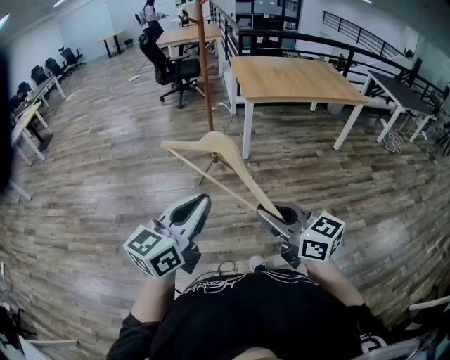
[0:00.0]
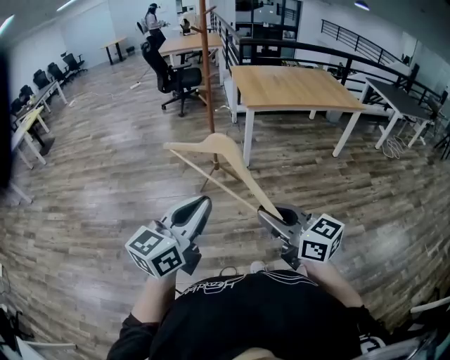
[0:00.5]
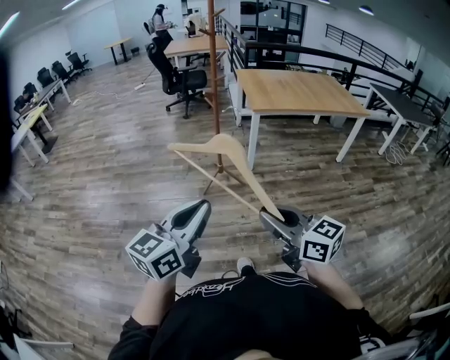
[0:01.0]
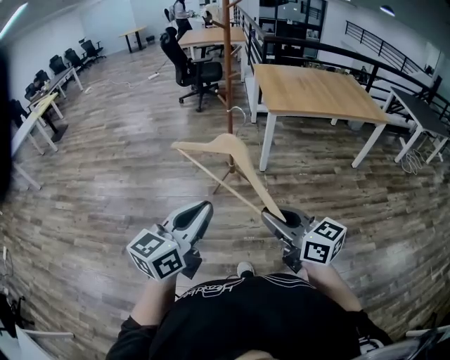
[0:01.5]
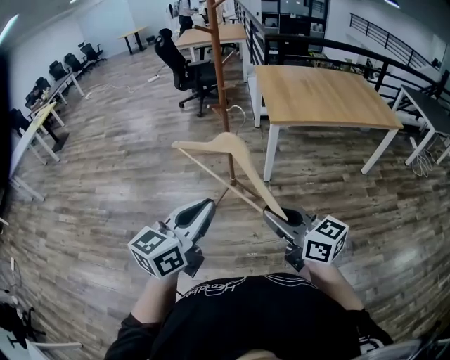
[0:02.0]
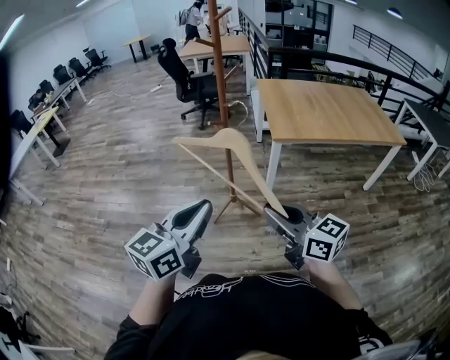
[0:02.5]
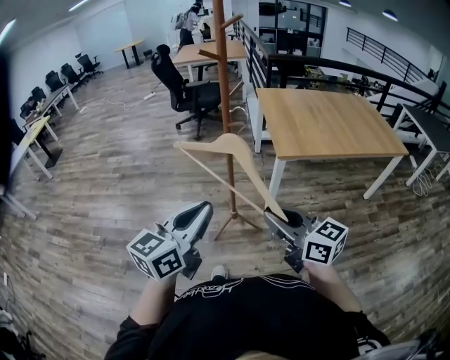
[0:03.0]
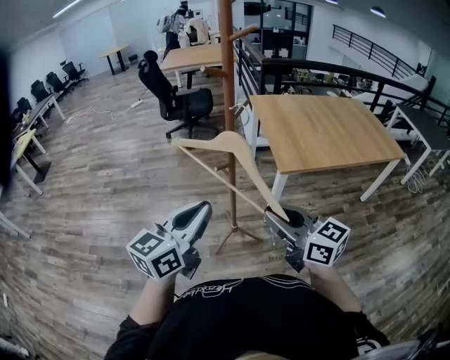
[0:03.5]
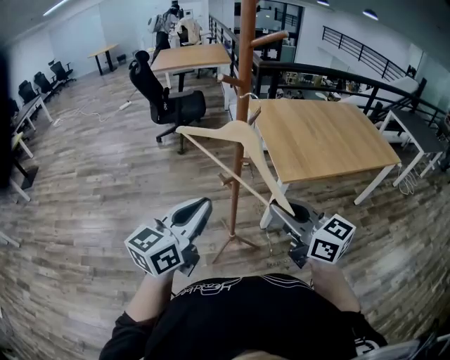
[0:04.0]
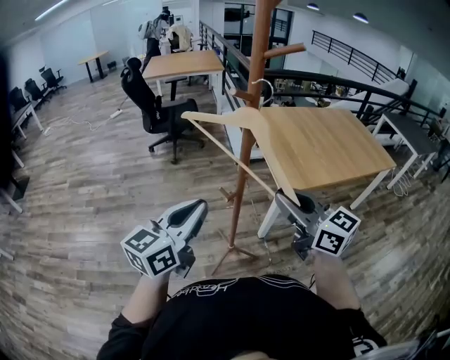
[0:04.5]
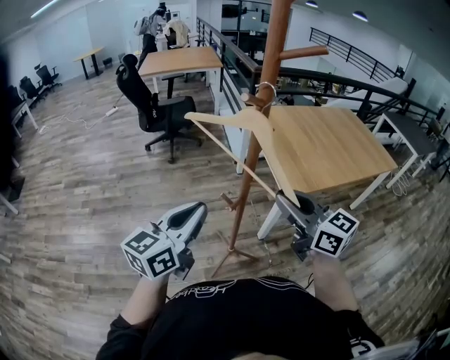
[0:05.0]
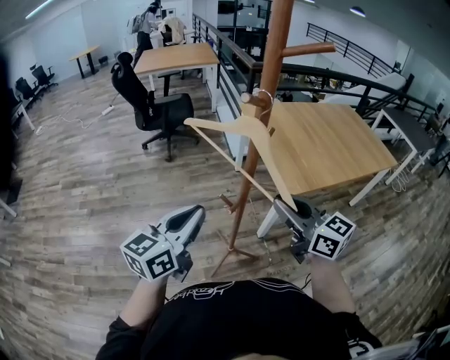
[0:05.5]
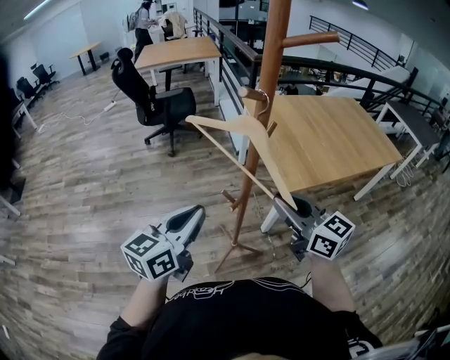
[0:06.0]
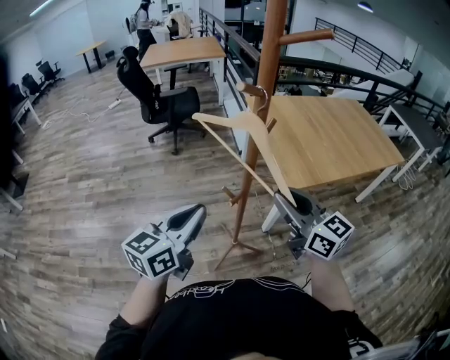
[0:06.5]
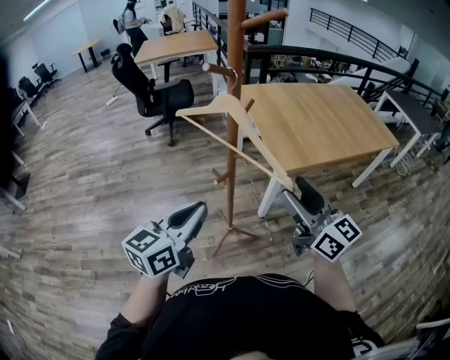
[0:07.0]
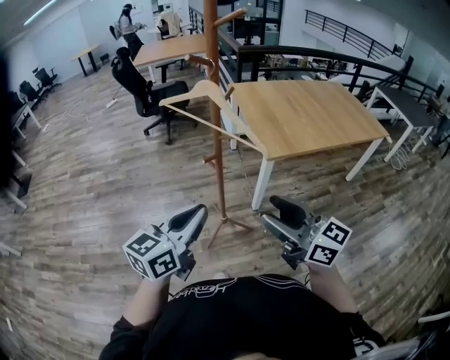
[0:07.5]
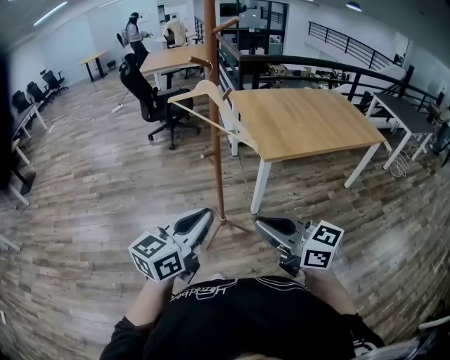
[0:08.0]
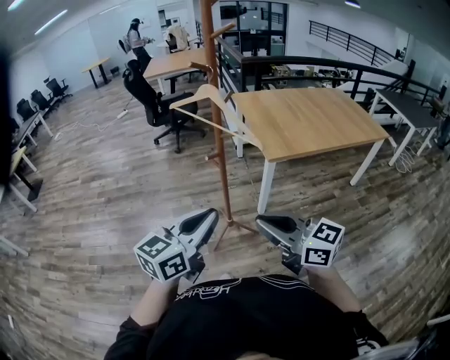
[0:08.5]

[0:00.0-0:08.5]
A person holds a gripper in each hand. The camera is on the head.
0:00.0 to 0:02.0: The grippers both shift forward by approximately 25 cm.
0:02.0 to 0:04.0: The grippers both shift forward by approximately 35 cm.
0:04.0 to 0:06.5: The right gripper travels forward by roughly 10 cm; the left gripper heads forward and downward, covering some 10 cm.
0:06.5 to 0:08.5: The right gripper shifts some 30 cm backward, and opens, then closes again; the left gripper heads backward and to the right, covering roughly 25 cm.

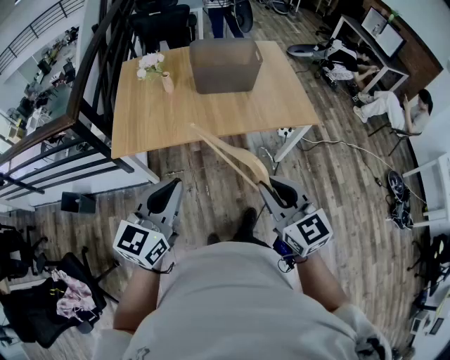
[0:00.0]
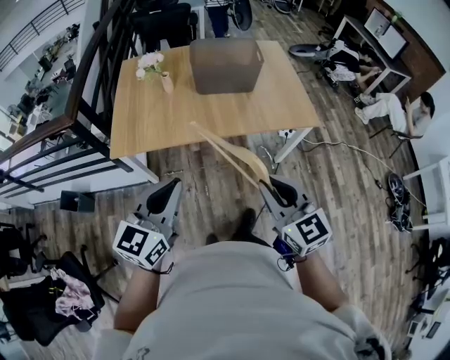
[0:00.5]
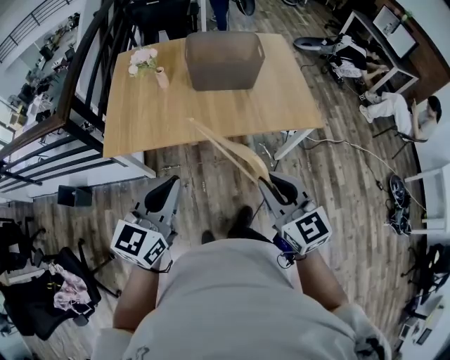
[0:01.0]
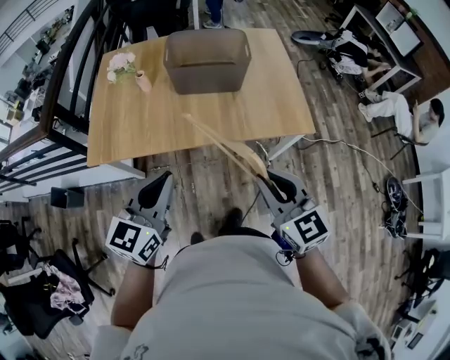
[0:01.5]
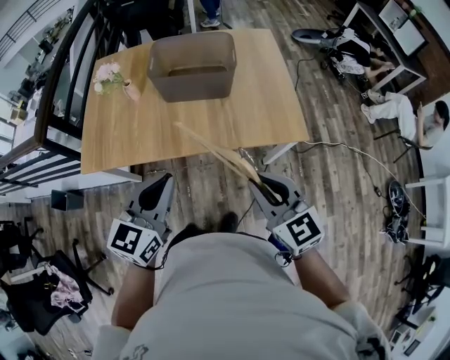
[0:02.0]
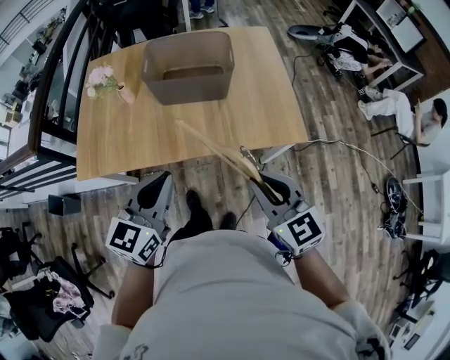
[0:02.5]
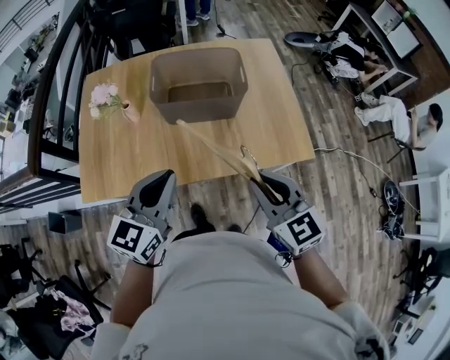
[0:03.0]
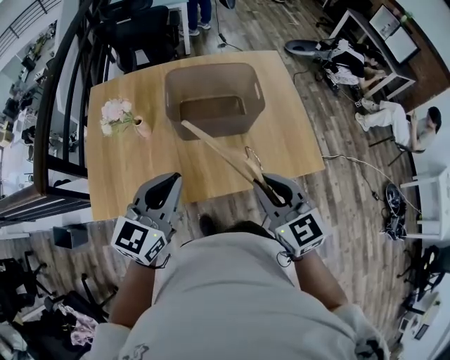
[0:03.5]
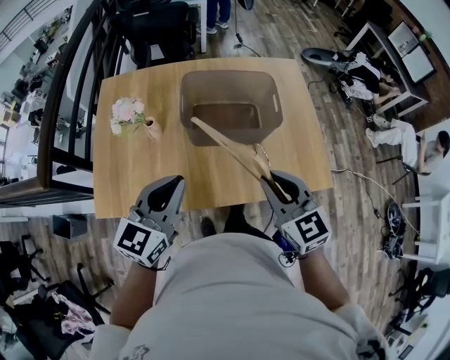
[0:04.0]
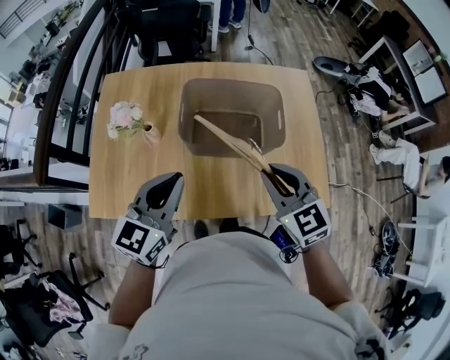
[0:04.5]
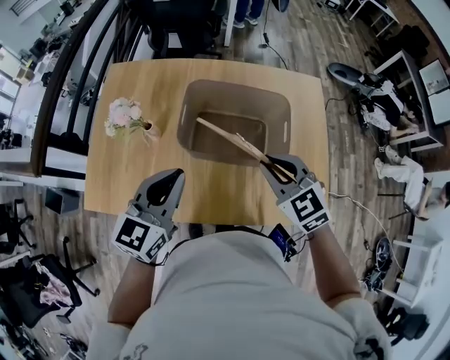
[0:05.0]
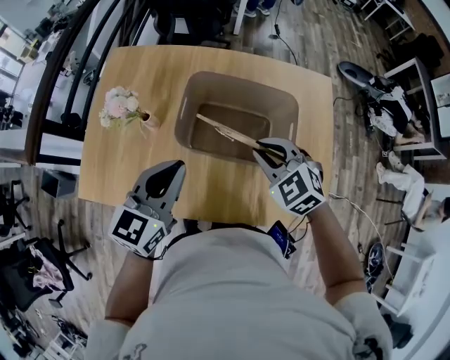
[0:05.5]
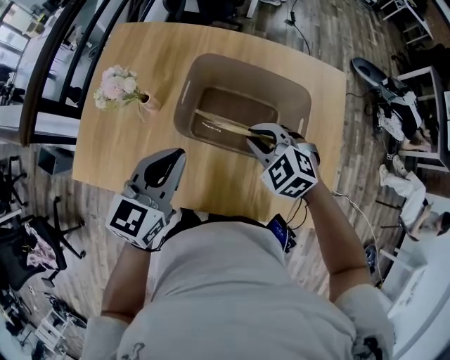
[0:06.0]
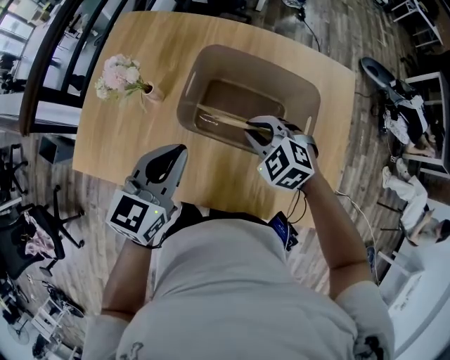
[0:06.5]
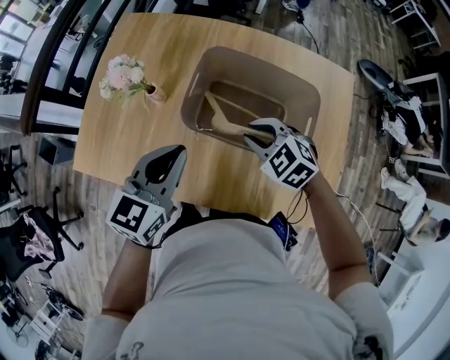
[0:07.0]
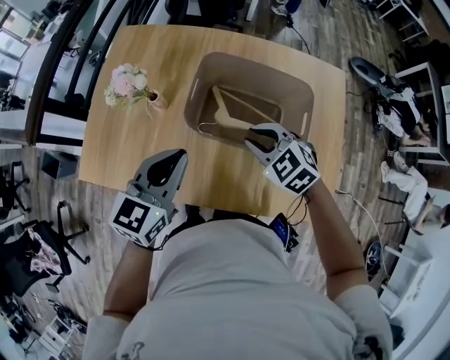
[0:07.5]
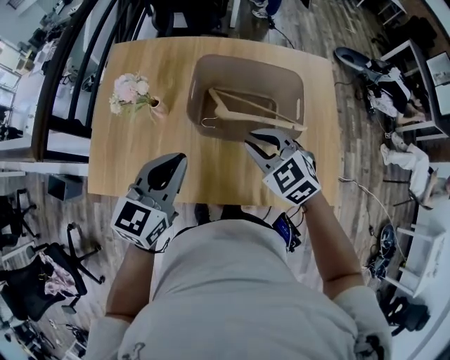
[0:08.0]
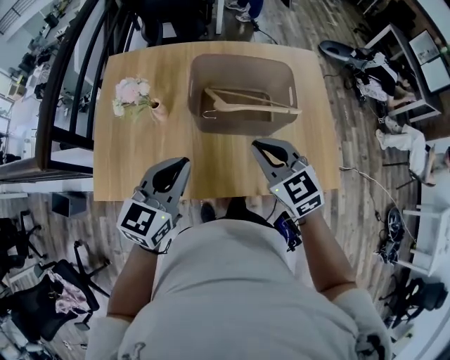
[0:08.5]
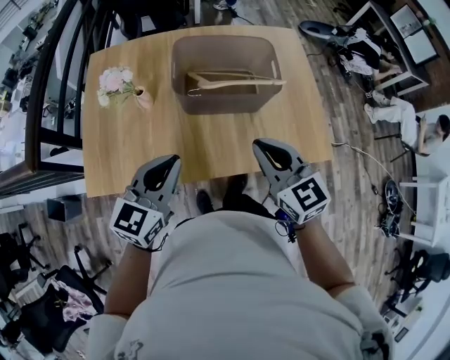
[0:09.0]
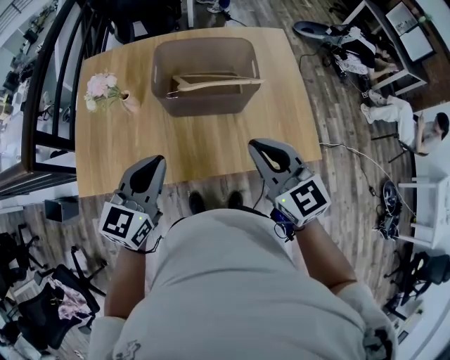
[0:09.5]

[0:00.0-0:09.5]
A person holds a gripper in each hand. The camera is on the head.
0:00.0 to 0:02.0: Both grippers move forward and to the right, roughly 25 cm.
0:02.0 to 0:04.0: The two grippers go approximately 25 cm forward and to the left.
0:04.0 to 0:05.5: The right gripper shifts approximately 20 cm forward, and changes its angle by some 40 degrees; the left gripper moves forward, some 15 cm.
0:05.5 to 0:07.5: The right gripper travels downward by about 5 cm.
0:07.5 to 0:09.5: The left gripper shifts some 15 cm backward. Meanwhile the right gripper shifts some 25 cm backward and upward, and points its fingers approximately 30 degrees further upward.

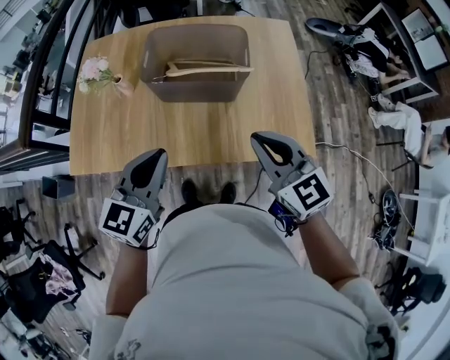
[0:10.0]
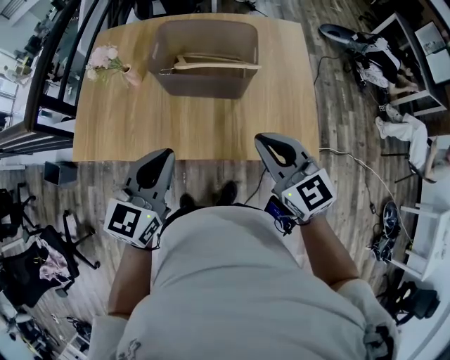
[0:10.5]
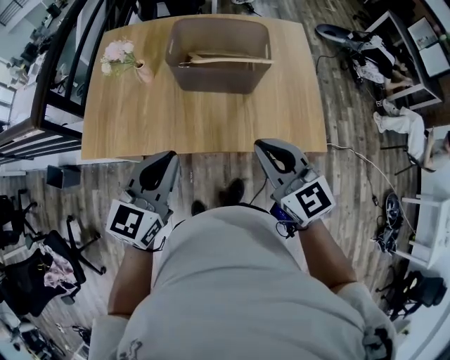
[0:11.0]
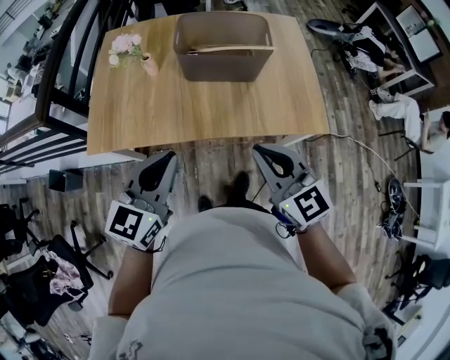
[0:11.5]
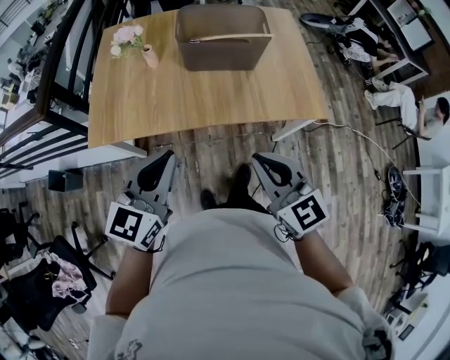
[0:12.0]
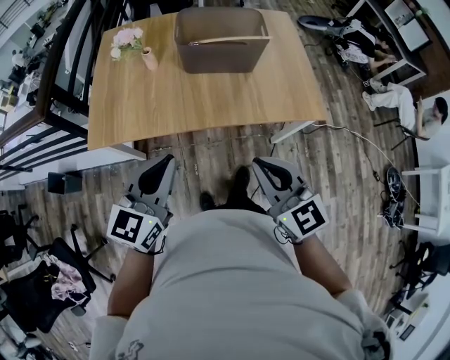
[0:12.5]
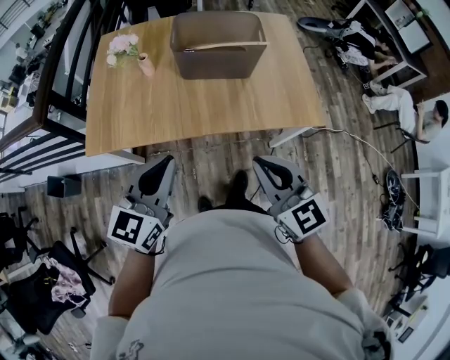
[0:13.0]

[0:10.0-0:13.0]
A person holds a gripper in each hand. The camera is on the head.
0:10.0 to 0:11.5: Both grippers travel together backward and to the left, roughly 15 cm.
0:11.5 to 0:13.0: The right gripper moves backward, approximately 5 cm.

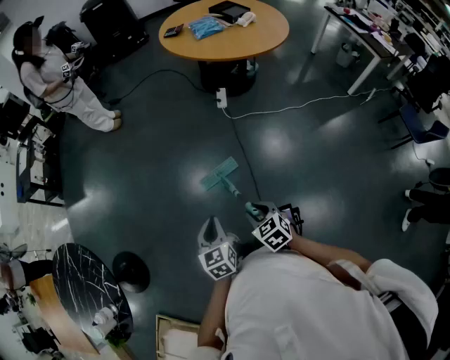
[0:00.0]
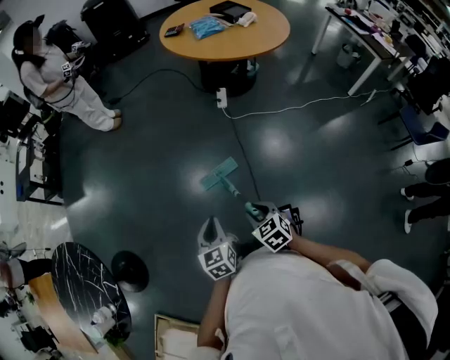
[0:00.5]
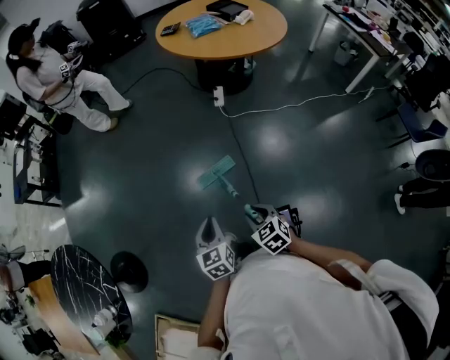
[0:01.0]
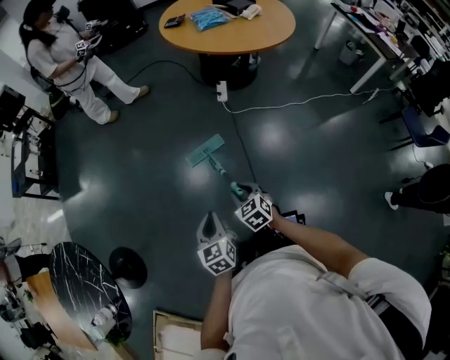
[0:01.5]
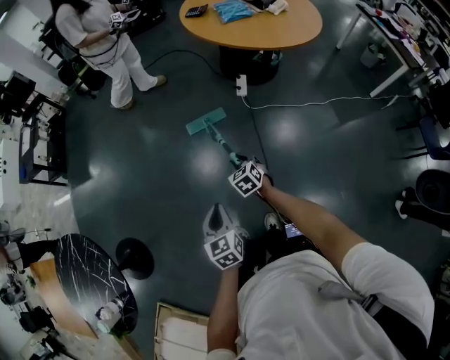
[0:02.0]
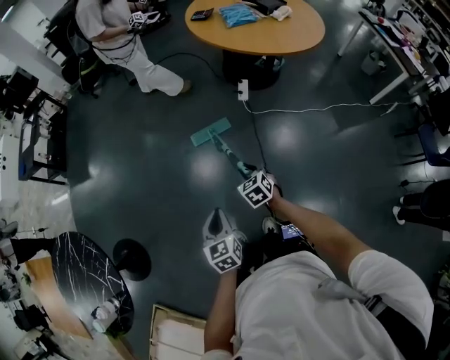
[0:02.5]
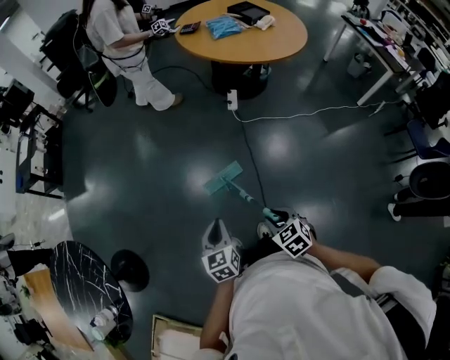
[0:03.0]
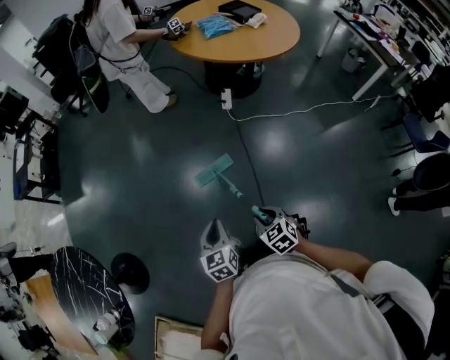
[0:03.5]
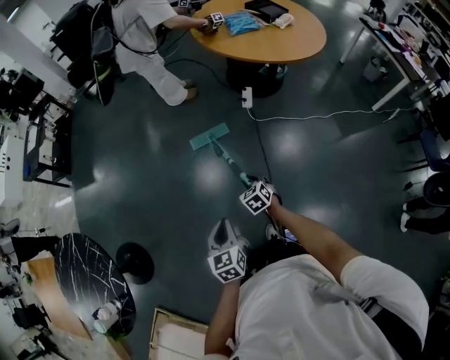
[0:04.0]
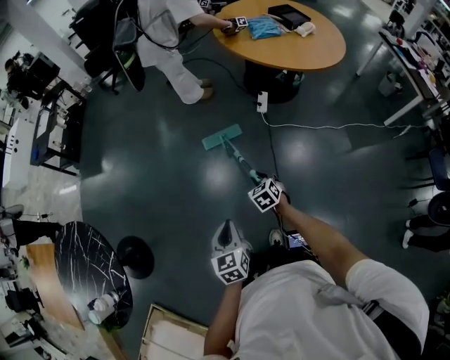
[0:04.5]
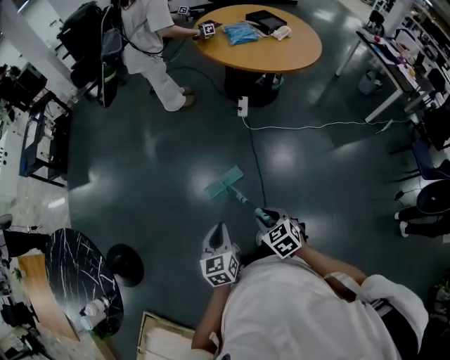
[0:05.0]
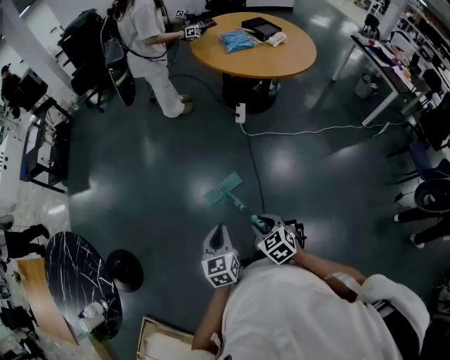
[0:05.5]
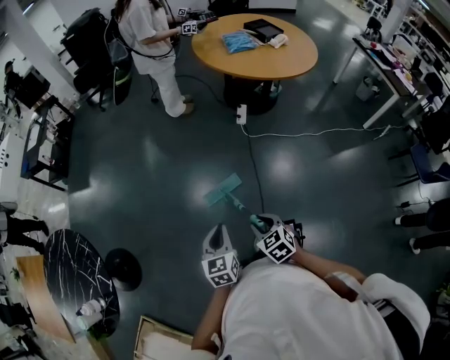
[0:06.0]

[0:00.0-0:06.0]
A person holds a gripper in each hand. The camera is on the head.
0:00.0 to 0:02.0: The right gripper moves forward, some 25 cm. Meanwhile the left gripper goes about 10 cm forward.
0:02.0 to 0:04.0: The right gripper reaches some 25 cm backward, then returns.
0:04.0 to 0:06.0: The right gripper shifts roughly 20 cm backward and upward; the left gripper moves some 5 cm.
